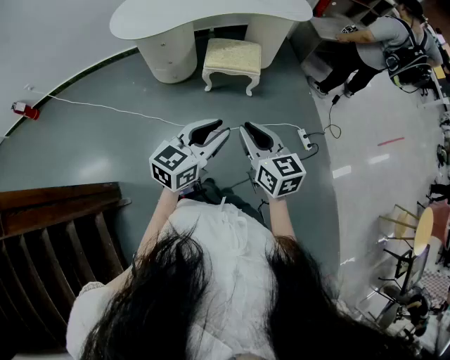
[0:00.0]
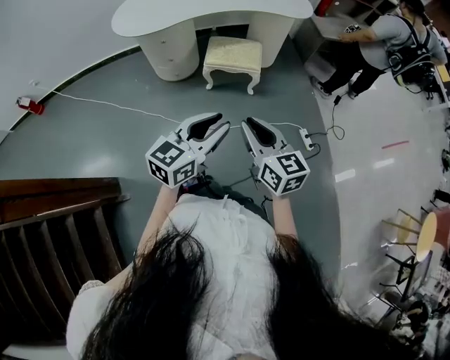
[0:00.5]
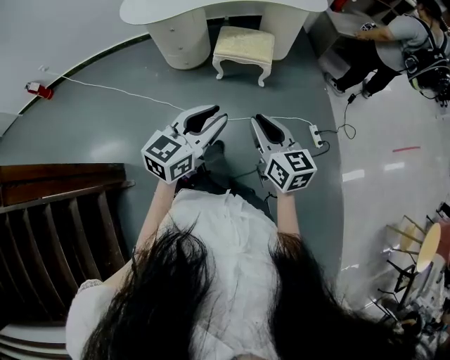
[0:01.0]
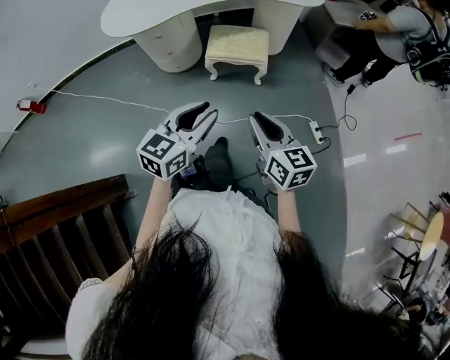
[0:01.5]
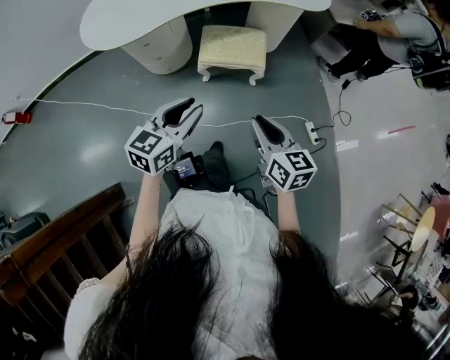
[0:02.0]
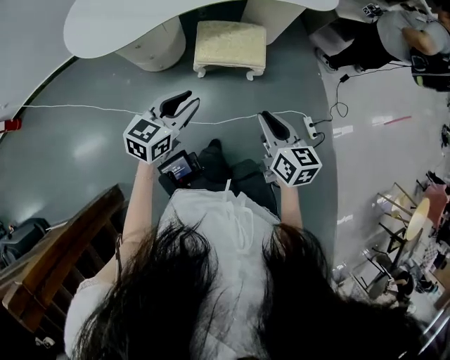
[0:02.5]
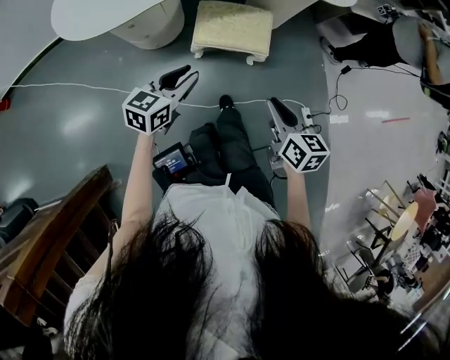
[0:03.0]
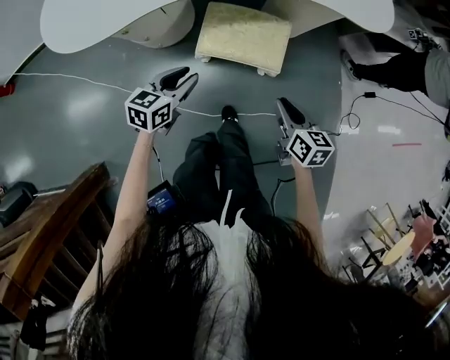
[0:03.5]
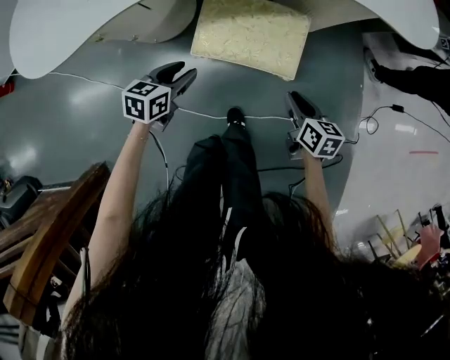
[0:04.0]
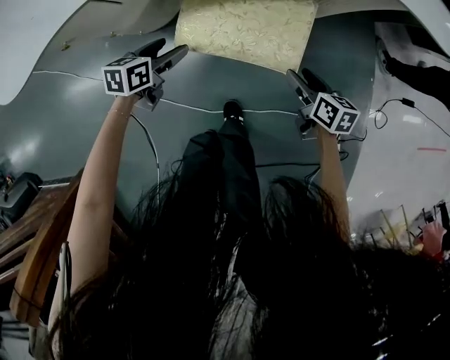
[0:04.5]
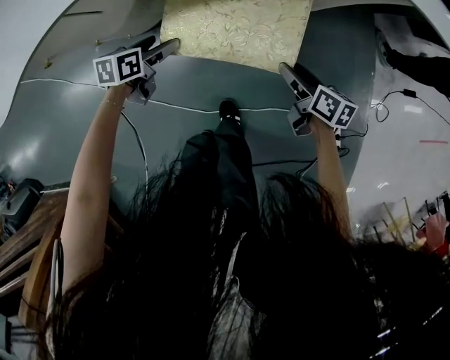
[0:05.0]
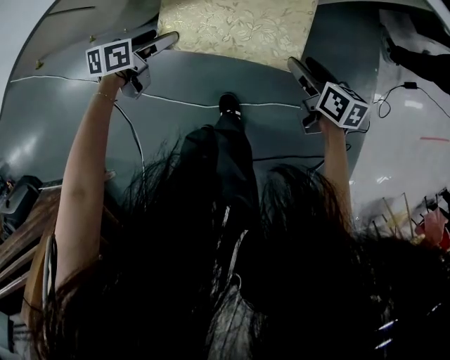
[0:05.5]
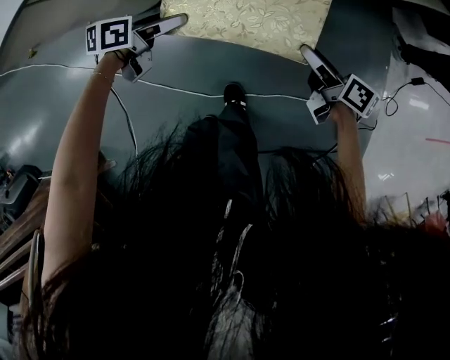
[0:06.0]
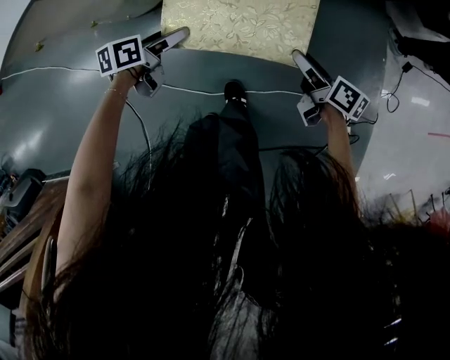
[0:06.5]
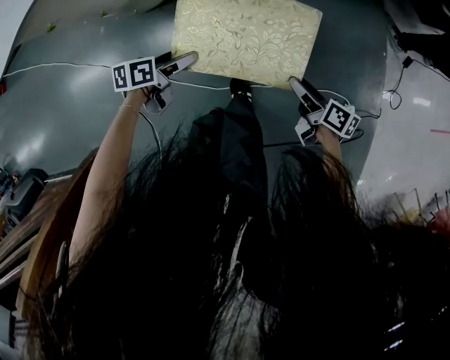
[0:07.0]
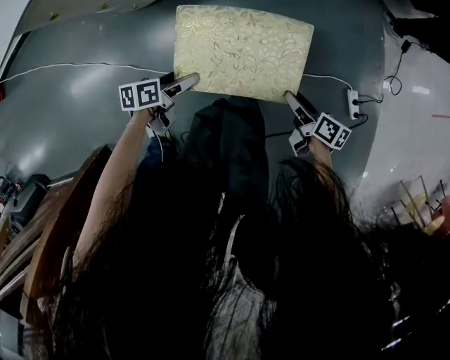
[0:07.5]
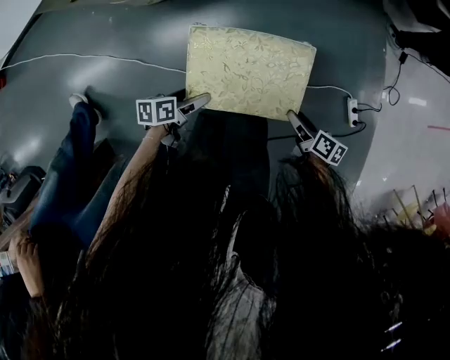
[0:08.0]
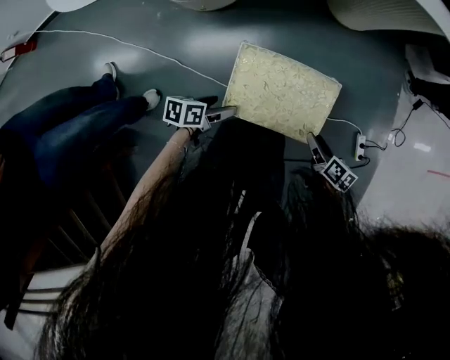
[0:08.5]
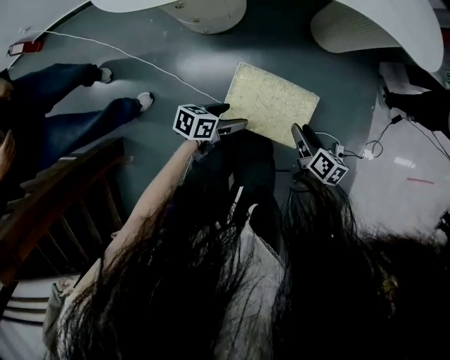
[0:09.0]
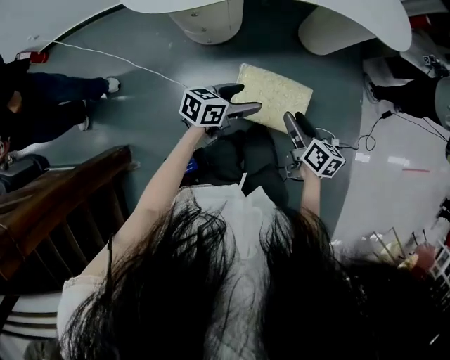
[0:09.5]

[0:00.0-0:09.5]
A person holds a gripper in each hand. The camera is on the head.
0:00.0 to 0:02.0: The two grippers go roughly 20 cm forward.
0:02.0 to 0:04.0: The two grippers go approximately 50 cm downward and forward. The right gripper changes its angle by roughly 20 degrees, while the left gripper turns by some 30 degrees.
0:04.0 to 0:05.5: Both grippers move downward and forward, approximately 15 cm. The left gripper changes its angle by roughly 30 degrees, and opens up; the right gripper opens up.
0:05.5 to 0:07.5: Both grippers move backward, roughly 30 cm. The right gripper rotates about 20 degrees.
0:07.5 to 0:09.5: The left gripper heads upward, covering roughly 35 cm, and turns by about 30 degrees; the right gripper heads upward and to the left, covering about 35 cm, and swivels approximately 30 degrees.

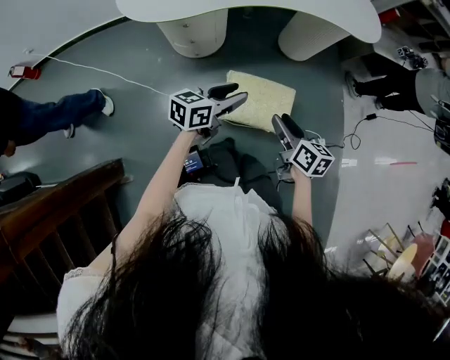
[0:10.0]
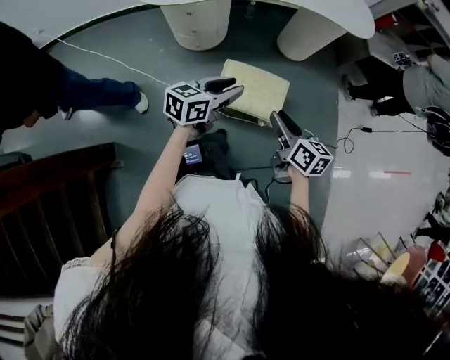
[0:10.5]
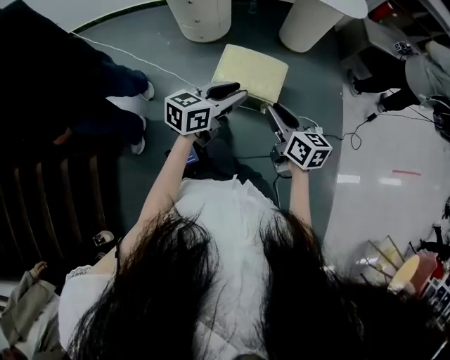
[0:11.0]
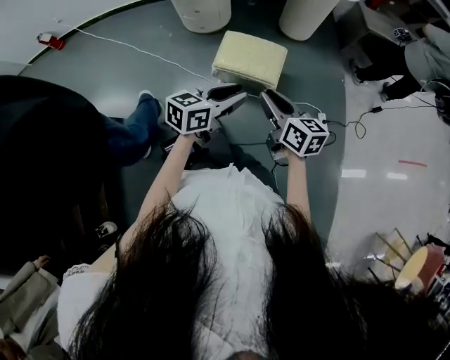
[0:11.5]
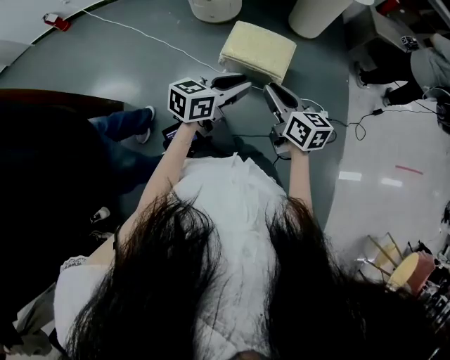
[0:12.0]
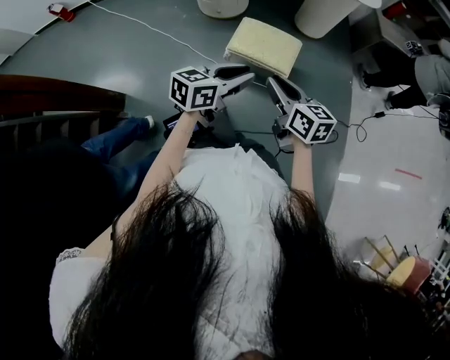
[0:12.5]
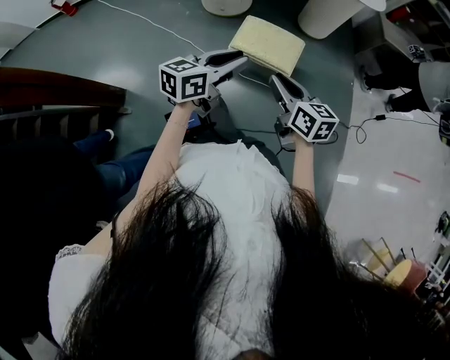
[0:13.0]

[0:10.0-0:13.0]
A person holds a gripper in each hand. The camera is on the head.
0:10.0 to 0:11.5: The right gripper goes approximately 25 cm backward; the left gripper moves backward and to the right, some 35 cm.
0:11.5 to 0:13.0: The left gripper heads to the left and upward, covering about 5 cm.

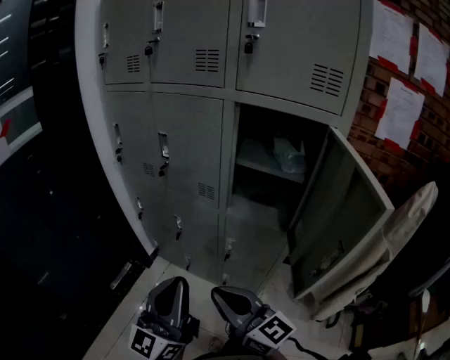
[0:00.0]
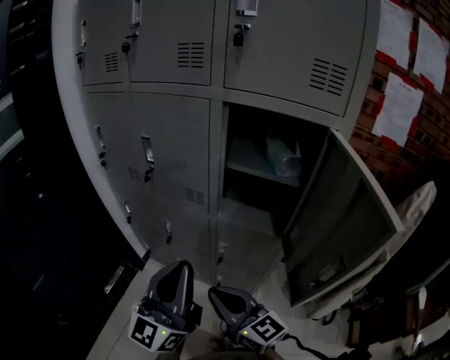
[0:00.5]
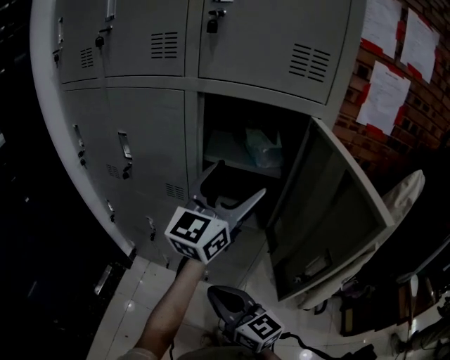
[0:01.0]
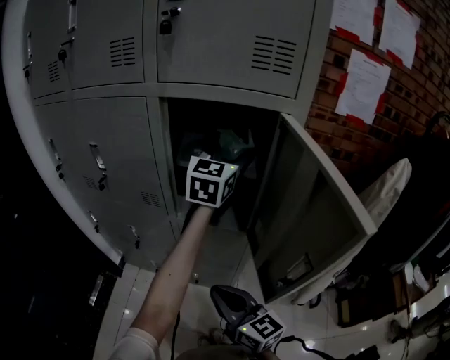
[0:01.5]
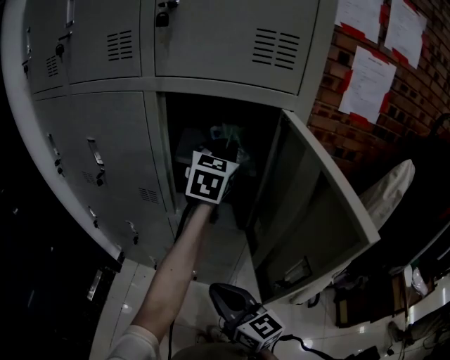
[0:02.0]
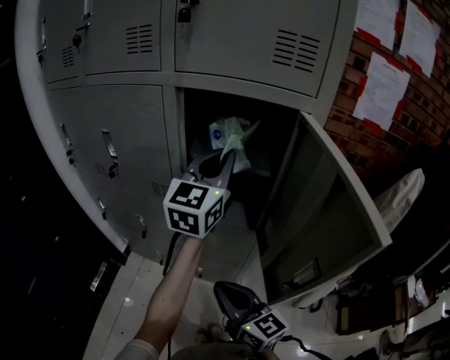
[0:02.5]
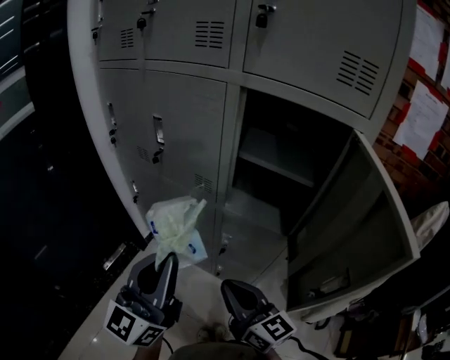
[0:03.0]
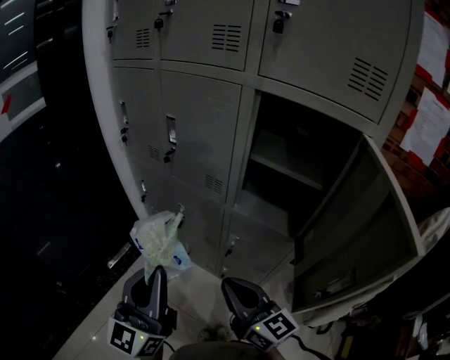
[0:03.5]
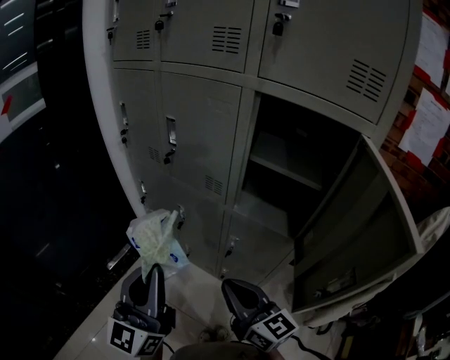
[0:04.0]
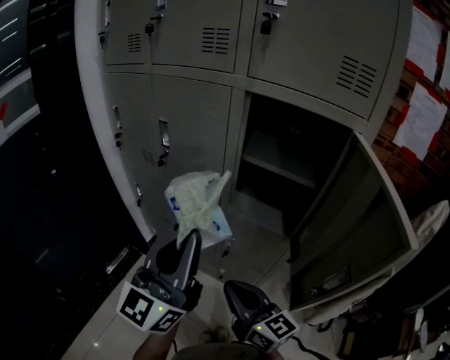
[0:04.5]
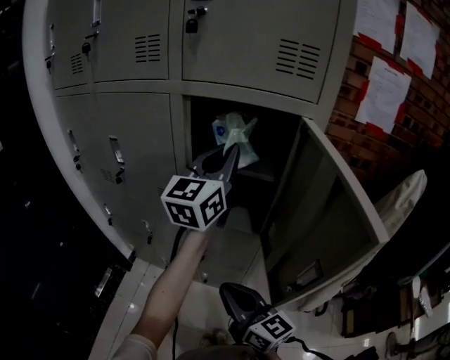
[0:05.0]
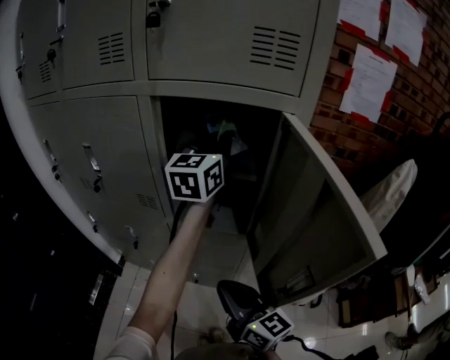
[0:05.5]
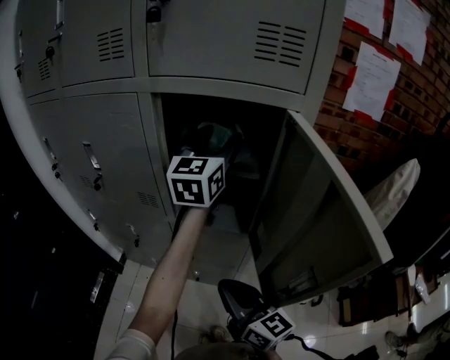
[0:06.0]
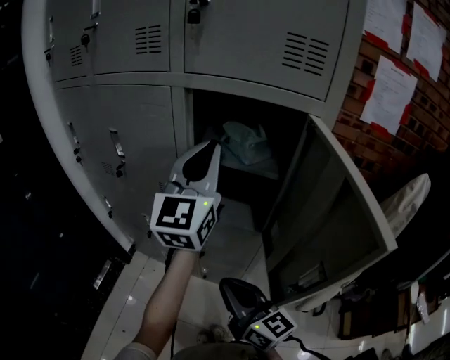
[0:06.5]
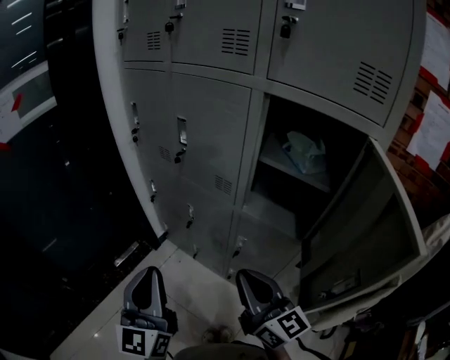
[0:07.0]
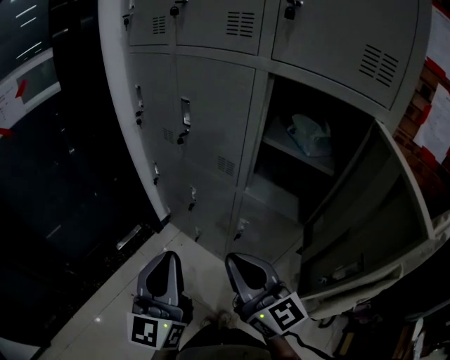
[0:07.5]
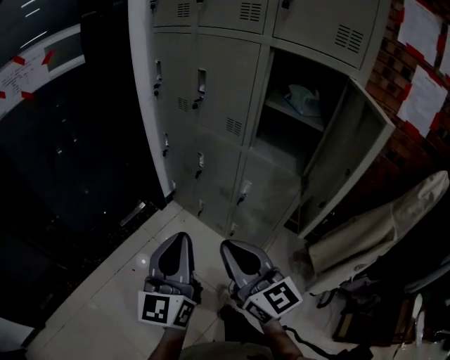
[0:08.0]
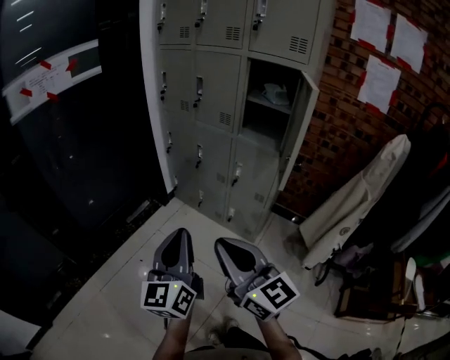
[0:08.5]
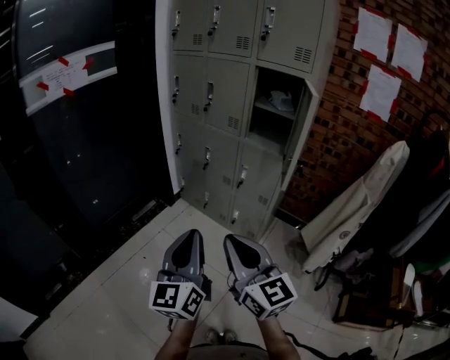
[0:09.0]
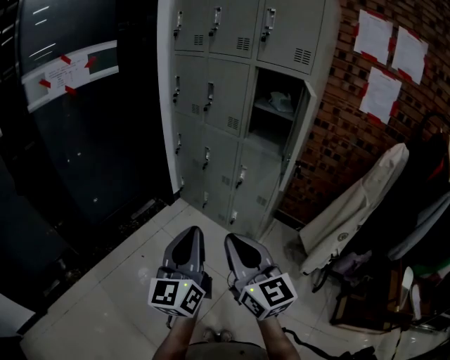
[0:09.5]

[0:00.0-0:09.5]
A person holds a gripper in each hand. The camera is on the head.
0:00.0 to 0:02.0: The right gripper goes about 15 cm to the right, forward and downward. The left gripper goes roughly 50 cm forward and to the right, tips its fingers downward by about 30 degrees, and opens, then closes again.
0:02.0 to 0:04.0: The right gripper moves to the left, some 5 cm. The left gripper travels to the left and backward by some 50 cm, and rotates some 40 degrees.
0:04.0 to 0:05.5: The left gripper is displaced forward and to the right by about 50 cm, and swivels roughly 30 degrees. Meanwhile the right gripper goes some 10 cm to the right.
0:05.5 to 0:07.5: The right gripper ends up roughly 15 cm from where it was, and changes its angle by approximately 30 degrees, while the left gripper ends up some 50 cm from where it was, swivels approximately 40 degrees, and opens, then closes again.
0:07.5 to 0:09.5: Both grippers travel together backward, roughly 40 cm.

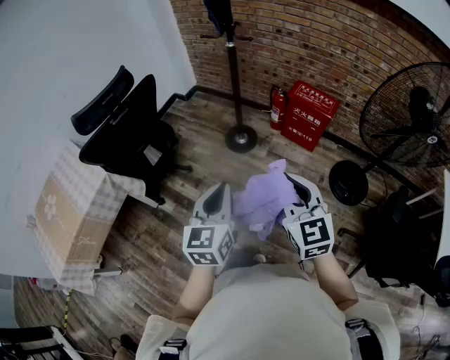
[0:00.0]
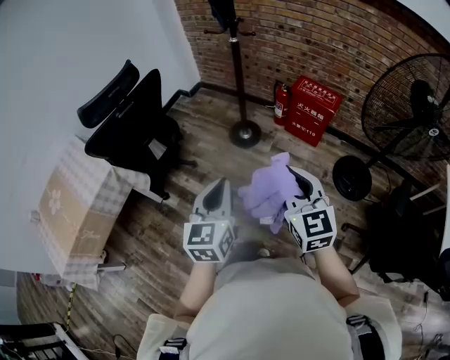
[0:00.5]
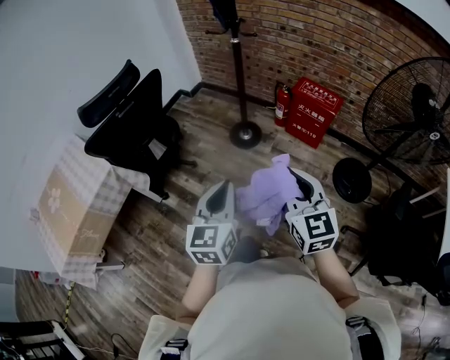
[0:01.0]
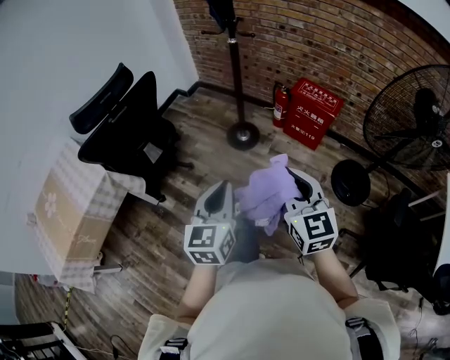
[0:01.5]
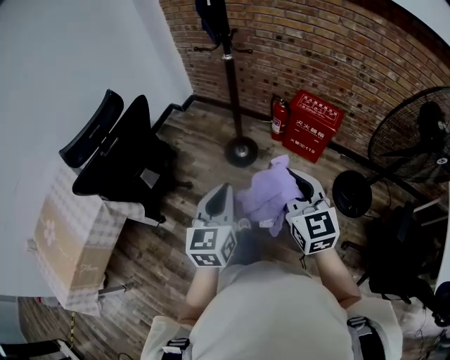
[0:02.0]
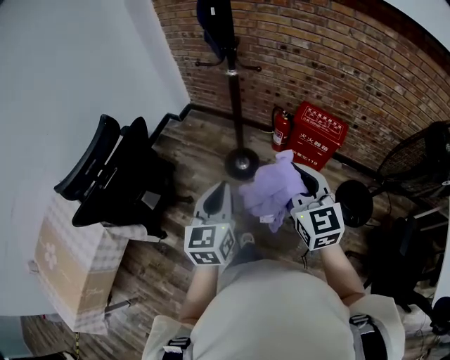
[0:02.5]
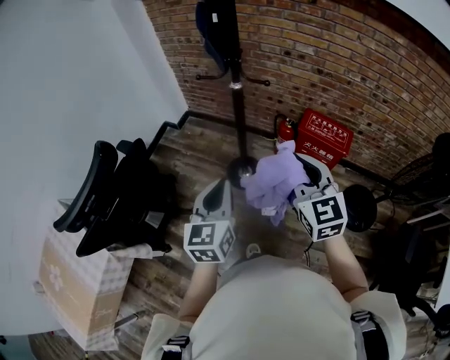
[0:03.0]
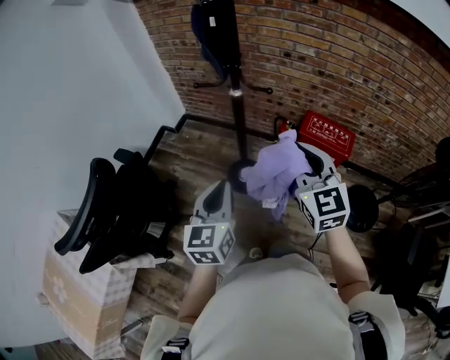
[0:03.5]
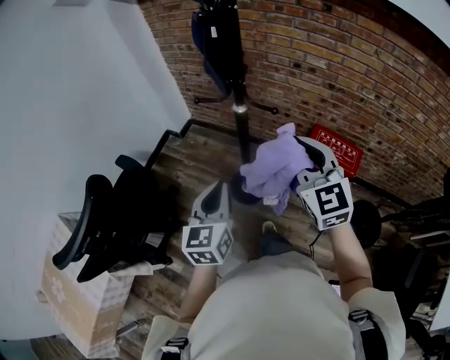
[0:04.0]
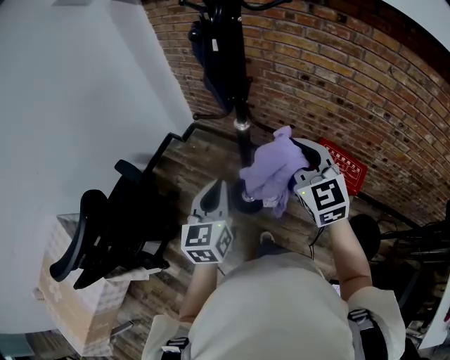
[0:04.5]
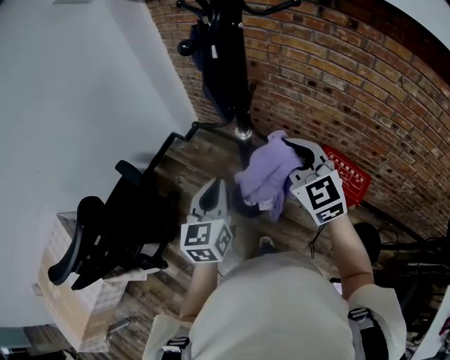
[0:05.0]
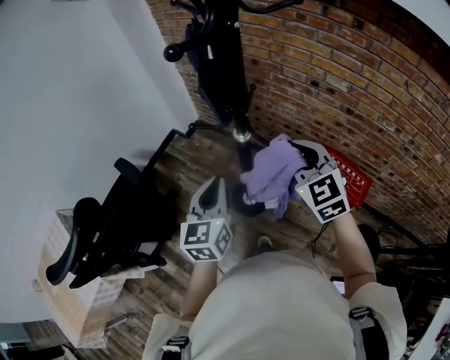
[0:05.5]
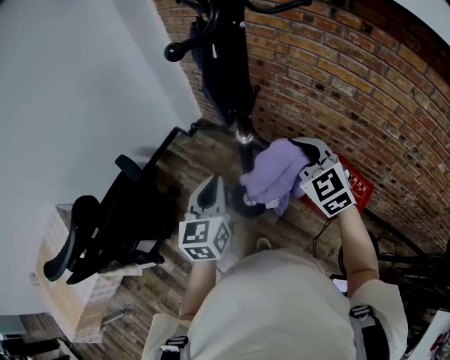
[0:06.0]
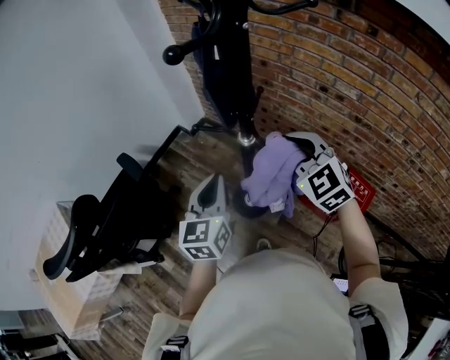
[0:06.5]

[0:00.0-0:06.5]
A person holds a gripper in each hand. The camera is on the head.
0:00.0 to 0:02.0: Both grippers travel together forward, about 15 cm.
0:02.0 to 0:04.5: The pair of grippers is taken forward, some 40 cm.
0:04.5 to 0:06.5: Both grippers travel together forward, some 10 cm. The right gripper swivels about 30 degrees.
